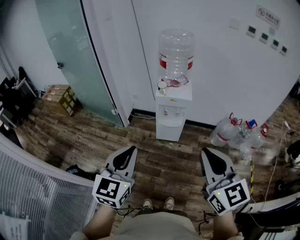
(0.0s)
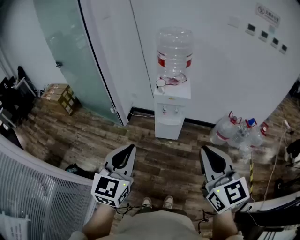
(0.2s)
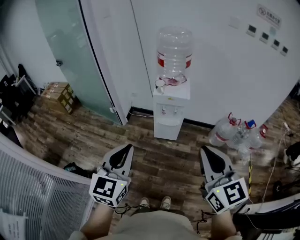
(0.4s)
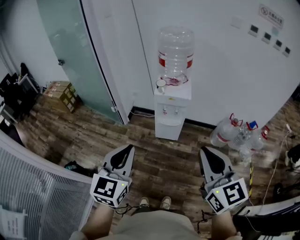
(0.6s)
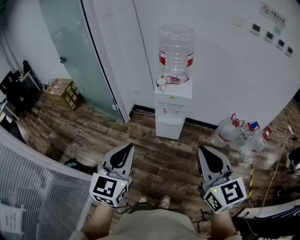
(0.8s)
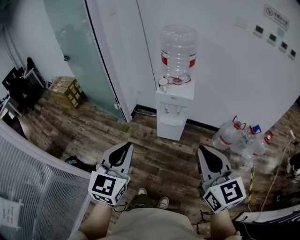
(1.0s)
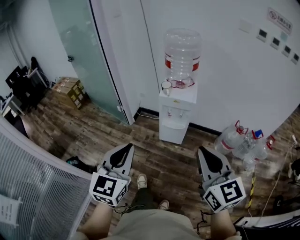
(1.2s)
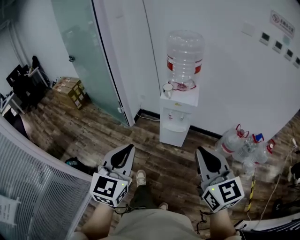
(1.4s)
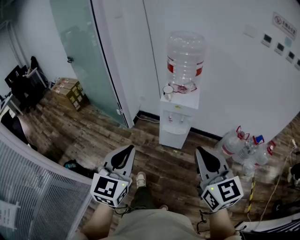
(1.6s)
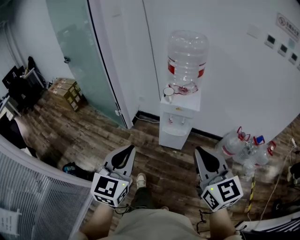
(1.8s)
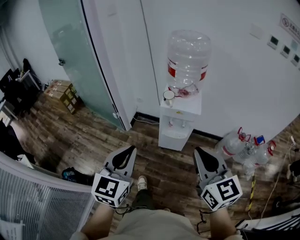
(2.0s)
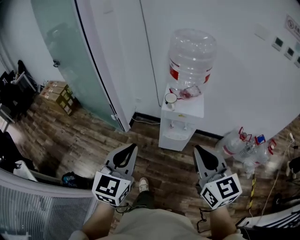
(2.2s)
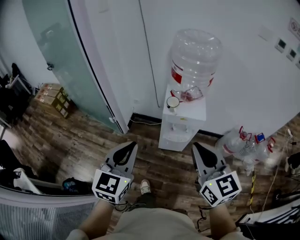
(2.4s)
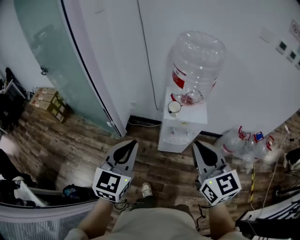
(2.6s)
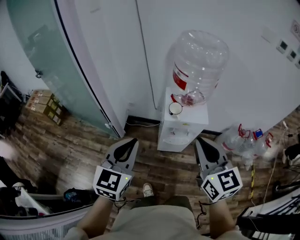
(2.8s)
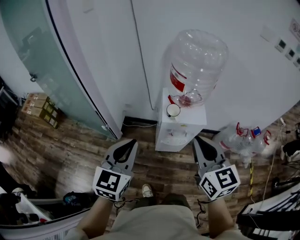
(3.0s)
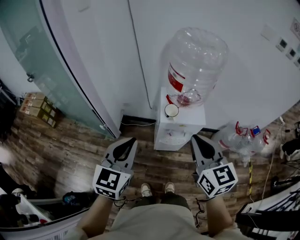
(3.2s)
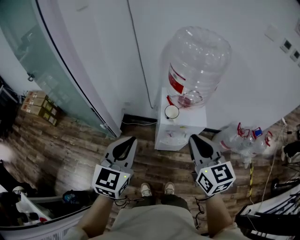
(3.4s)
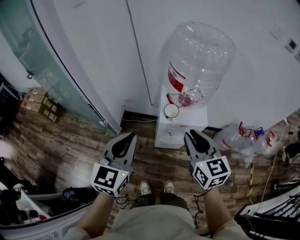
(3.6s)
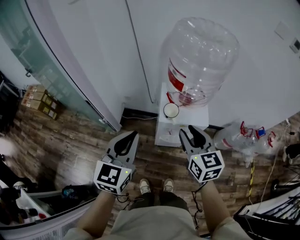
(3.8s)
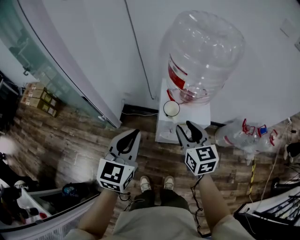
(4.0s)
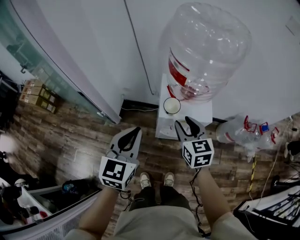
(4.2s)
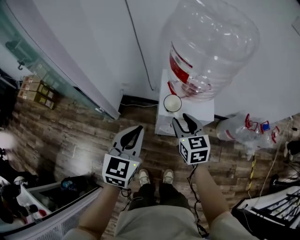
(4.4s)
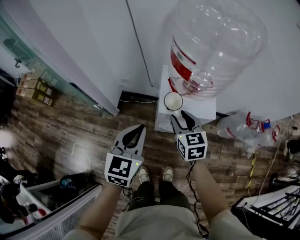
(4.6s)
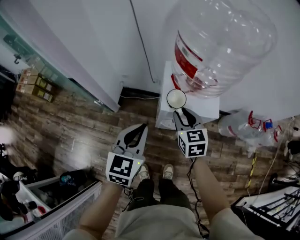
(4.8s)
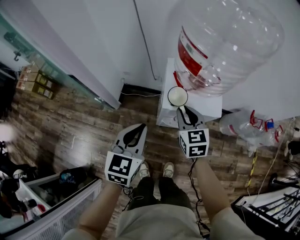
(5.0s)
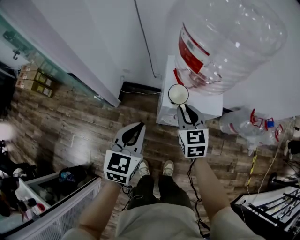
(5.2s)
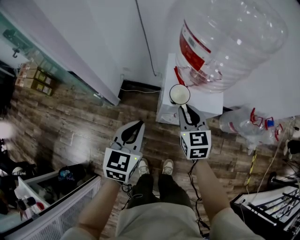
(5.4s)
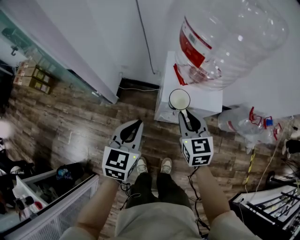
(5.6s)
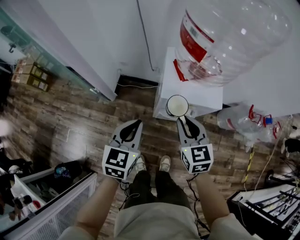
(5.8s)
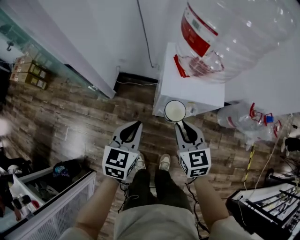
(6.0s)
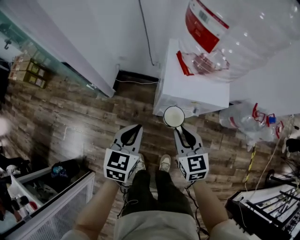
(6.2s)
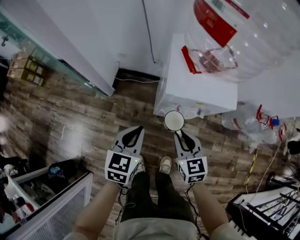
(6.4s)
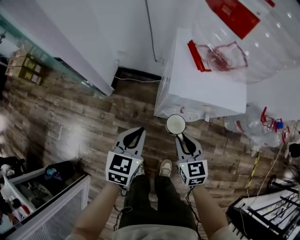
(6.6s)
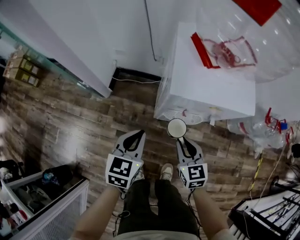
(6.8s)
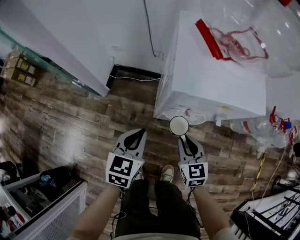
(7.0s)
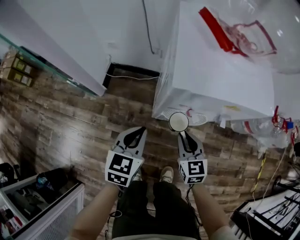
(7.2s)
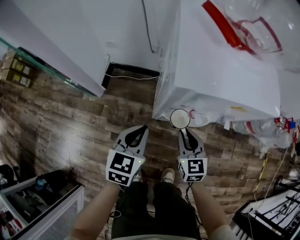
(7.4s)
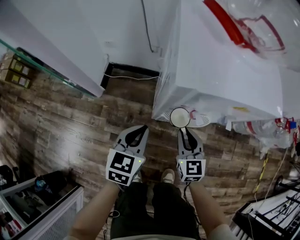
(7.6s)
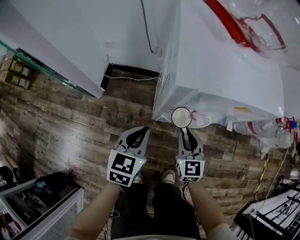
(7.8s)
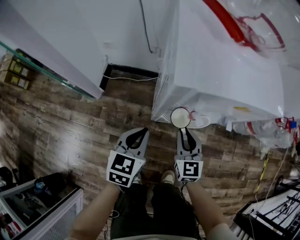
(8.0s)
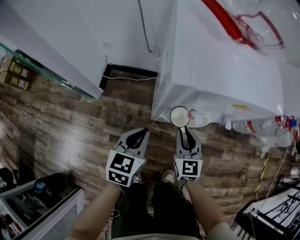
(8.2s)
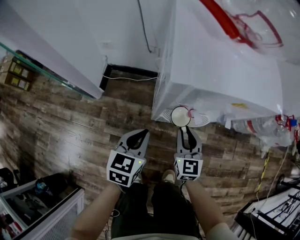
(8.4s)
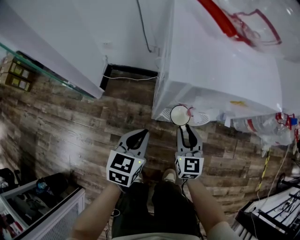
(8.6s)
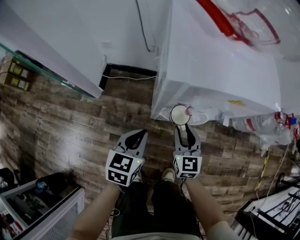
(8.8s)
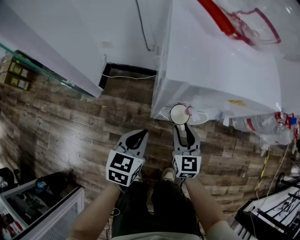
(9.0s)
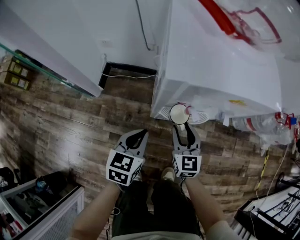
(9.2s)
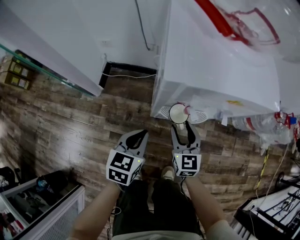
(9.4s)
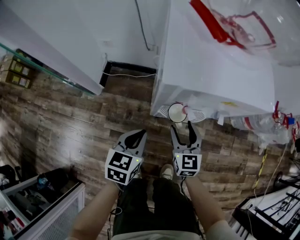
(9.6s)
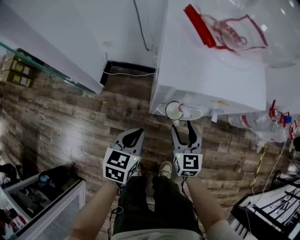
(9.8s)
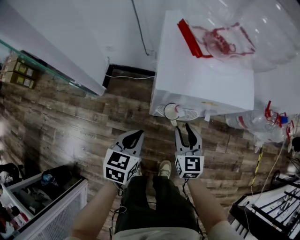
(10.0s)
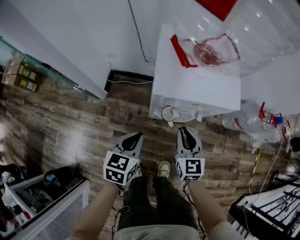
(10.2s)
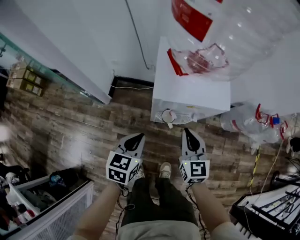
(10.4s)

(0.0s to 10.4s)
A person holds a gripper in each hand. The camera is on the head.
0.0s - 1.4s: The right gripper travels forward by roughly 5 cm.
1.4s - 3.0s: The two grippers go roughly 35 cm forward.
3.0s - 4.4s: The right gripper travels downward and forward by about 30 cm, and opens its fingers; the left gripper heads downward, forward and to the right, covering approximately 15 cm.
4.4s - 6.0s: The left gripper travels downward by approximately 15 cm. The right gripper is displaced downward and backward by about 10 cm, and closes.
6.0s - 7.4s: The two grippers go some 30 cm downward.
7.4s - 9.0s: The grippers make only small movements.
9.0s - 10.4s: The two grippers go about 20 cm upward. The right gripper closes.

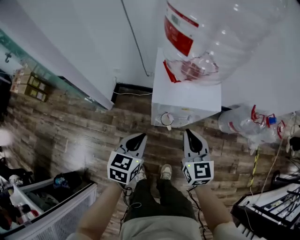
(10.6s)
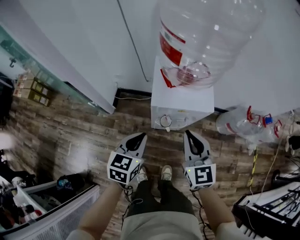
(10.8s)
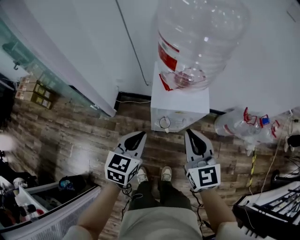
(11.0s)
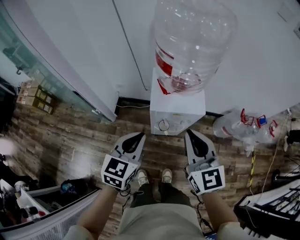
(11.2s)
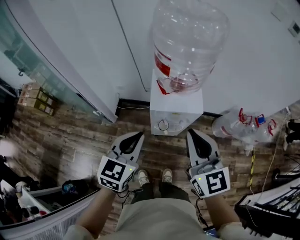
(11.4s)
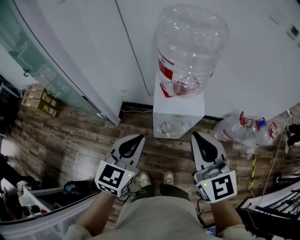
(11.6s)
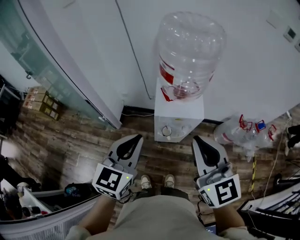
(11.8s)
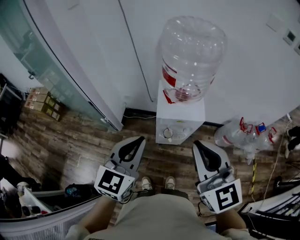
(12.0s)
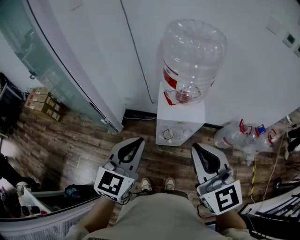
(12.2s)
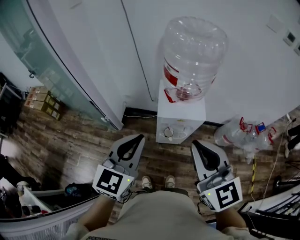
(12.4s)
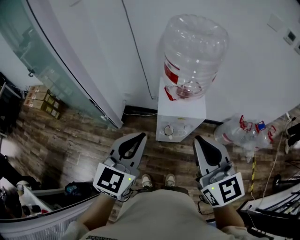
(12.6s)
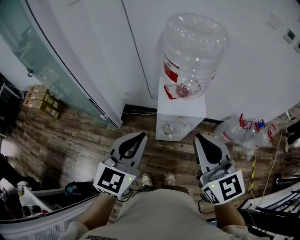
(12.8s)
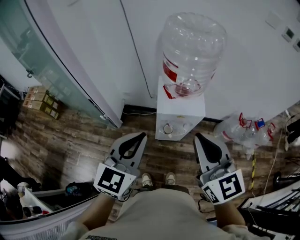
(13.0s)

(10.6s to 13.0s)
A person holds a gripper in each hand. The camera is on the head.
10.6s - 11.8s: The two grippers go some 30 cm upward. The left gripper turns by some 20 degrees.
11.8s - 13.0s: The grippers stay close to where they were, moving slightly.

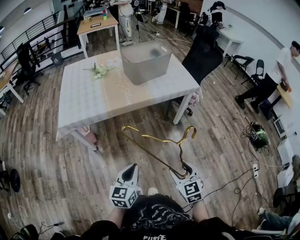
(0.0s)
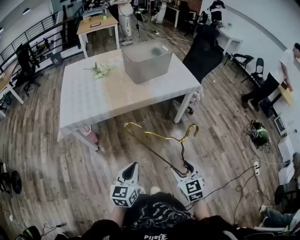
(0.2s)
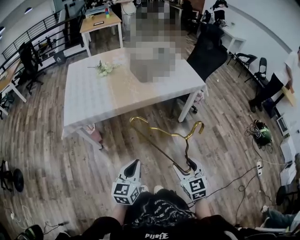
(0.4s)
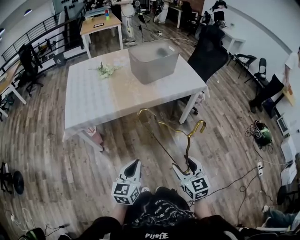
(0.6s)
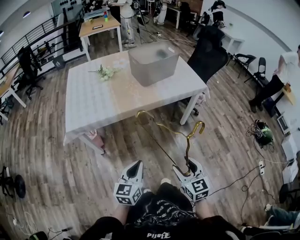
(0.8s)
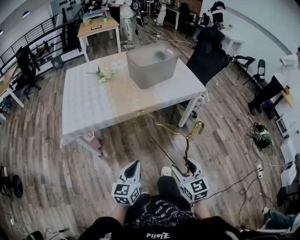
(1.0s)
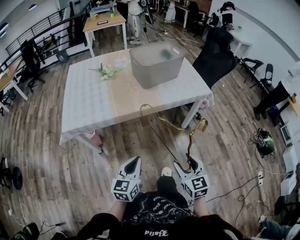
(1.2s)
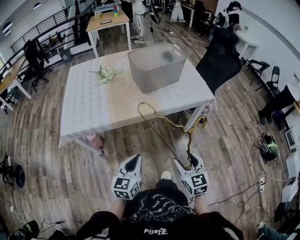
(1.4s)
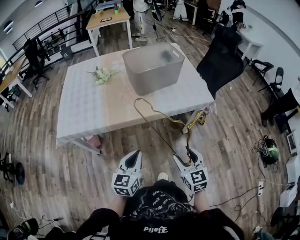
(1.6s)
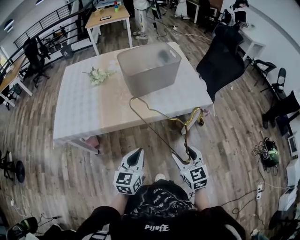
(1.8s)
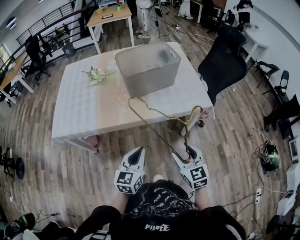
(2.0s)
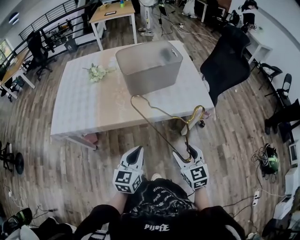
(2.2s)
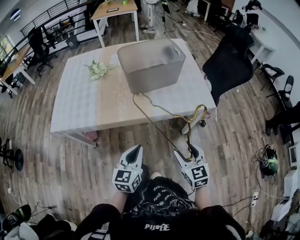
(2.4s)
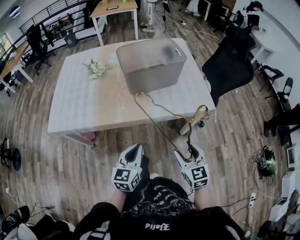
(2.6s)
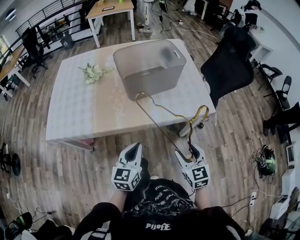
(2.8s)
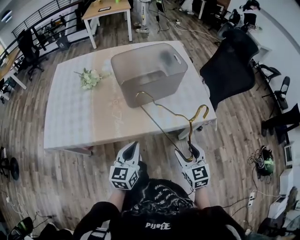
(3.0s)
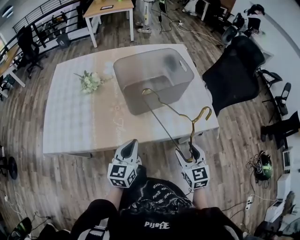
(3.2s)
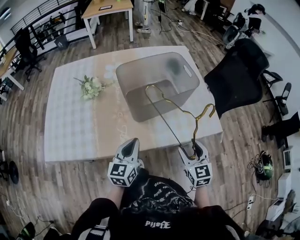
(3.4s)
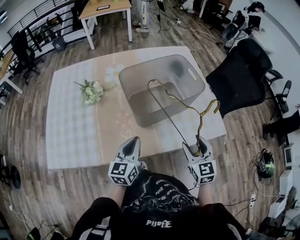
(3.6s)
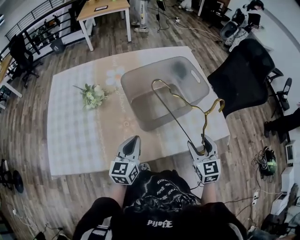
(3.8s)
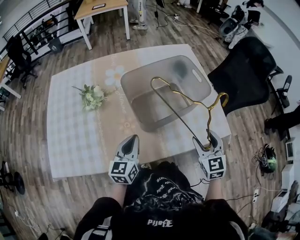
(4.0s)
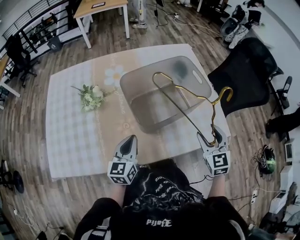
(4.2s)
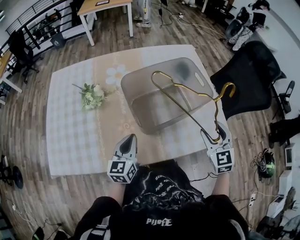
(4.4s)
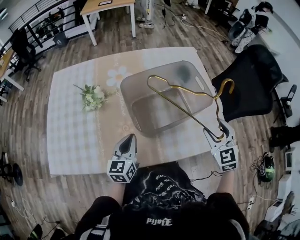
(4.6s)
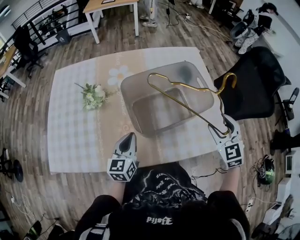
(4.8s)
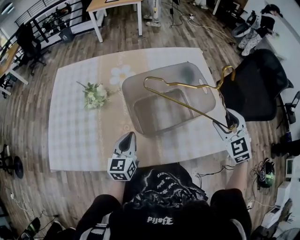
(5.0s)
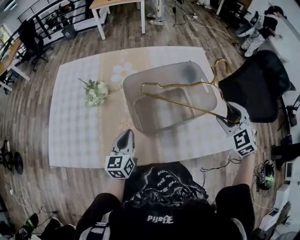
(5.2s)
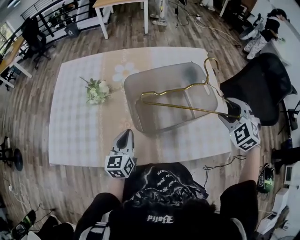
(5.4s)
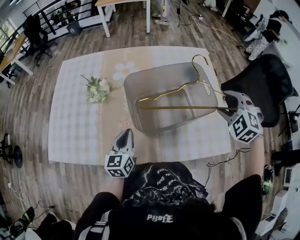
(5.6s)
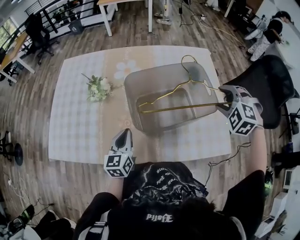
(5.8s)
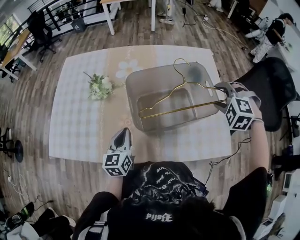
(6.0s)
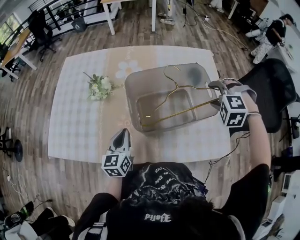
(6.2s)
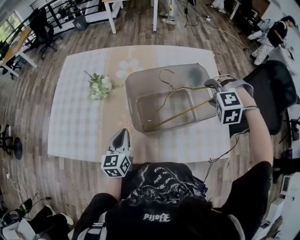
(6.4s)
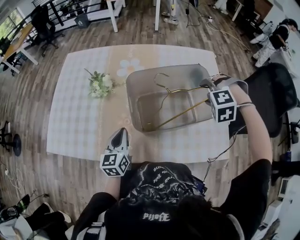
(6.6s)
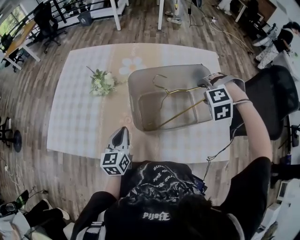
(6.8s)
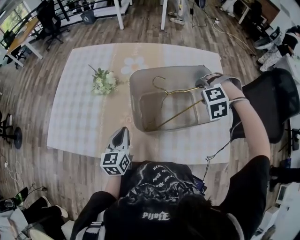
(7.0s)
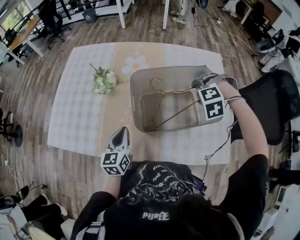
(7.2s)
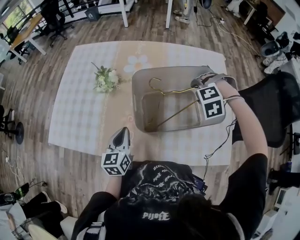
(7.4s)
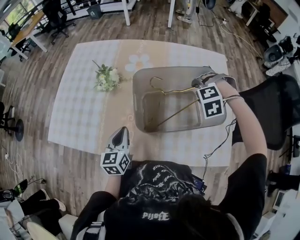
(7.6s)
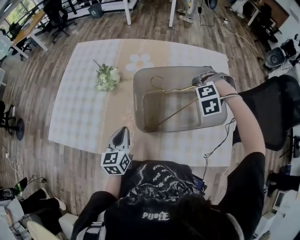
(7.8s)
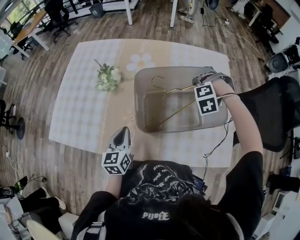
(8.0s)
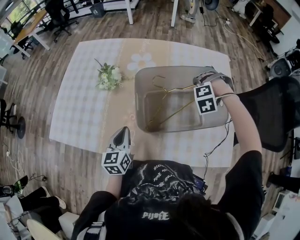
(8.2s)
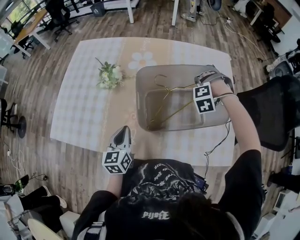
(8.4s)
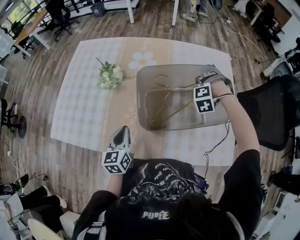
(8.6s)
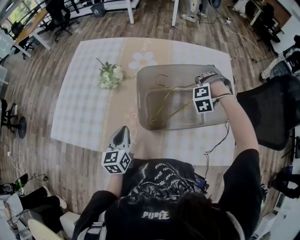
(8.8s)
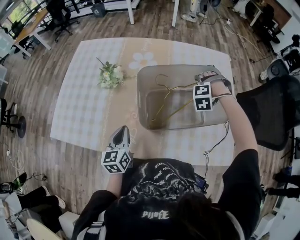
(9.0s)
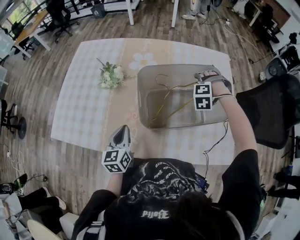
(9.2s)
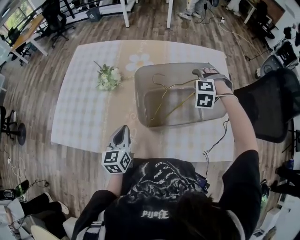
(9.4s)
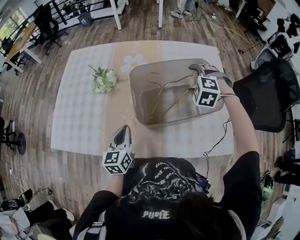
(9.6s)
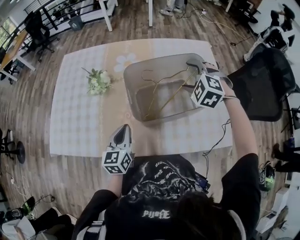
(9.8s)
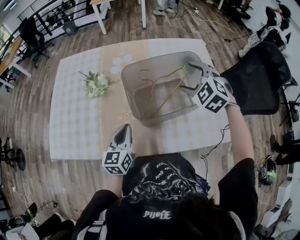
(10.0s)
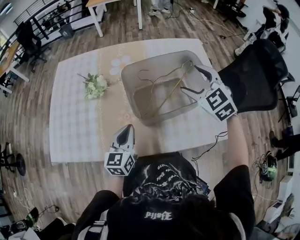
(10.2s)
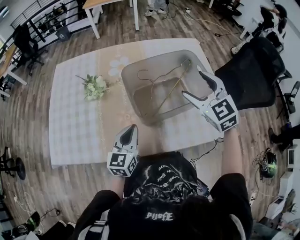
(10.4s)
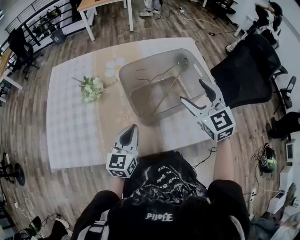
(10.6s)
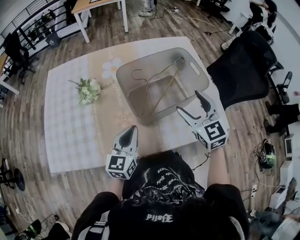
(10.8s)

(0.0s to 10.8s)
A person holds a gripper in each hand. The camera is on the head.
0.0s - 1.6s: Both grippers move forward, about 30 cm.
1.6s - 3.0s: Both grippers move forward, approximately 25 cm.
3.0s - 4.6s: The right gripper moves forward, roughly 30 cm, and swivels some 20 degrees, while the left gripper heads forward and to the left, covering about 30 cm.
4.6s - 6.2s: The right gripper travels forward by approximately 15 cm, and rotates around the line of its fingers by roughly 60 degrees, counterclockwise from behind.
6.2s - 7.8s: The right gripper travels downward, to the left and forward by some 15 cm, and turns by approximately 20 degrees.
7.8s - 9.2s: The grippers make only small movements.
9.2s - 10.8s: The right gripper is displaced backward and upward by approximately 25 cm, and rolls clockwise, seen from behind, by some 80 degrees, while the left gripper shifts some 10 cm to the right and upward, and turns by approximately 30 degrees.
